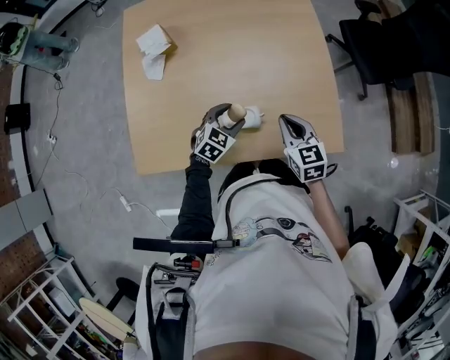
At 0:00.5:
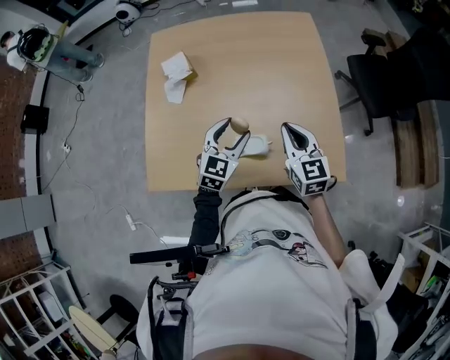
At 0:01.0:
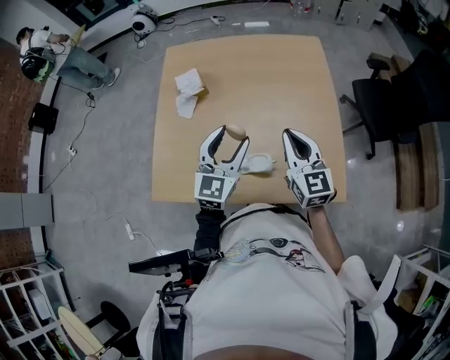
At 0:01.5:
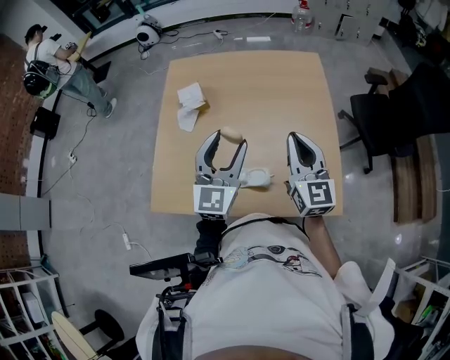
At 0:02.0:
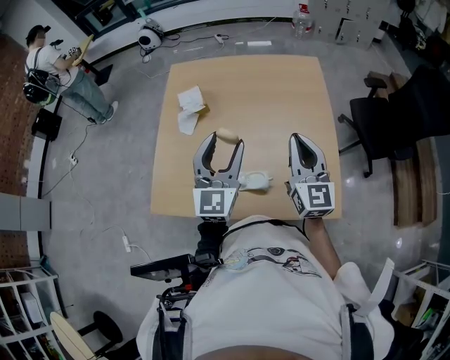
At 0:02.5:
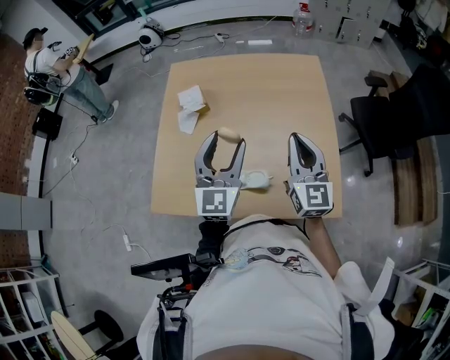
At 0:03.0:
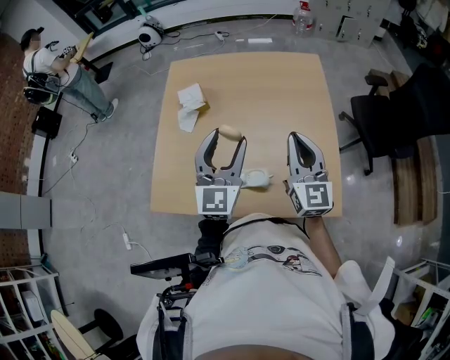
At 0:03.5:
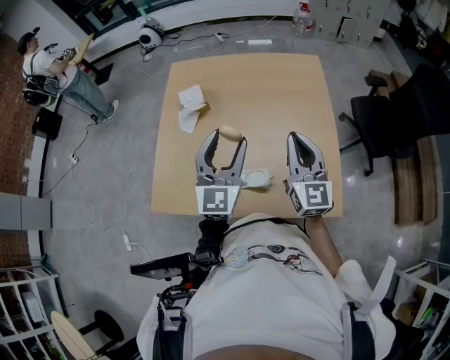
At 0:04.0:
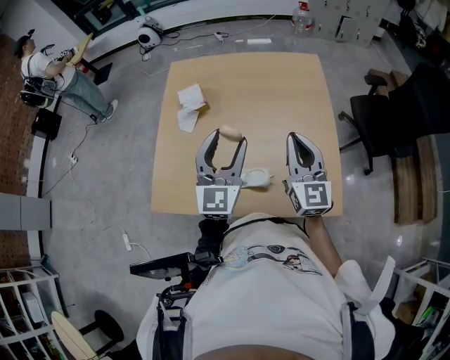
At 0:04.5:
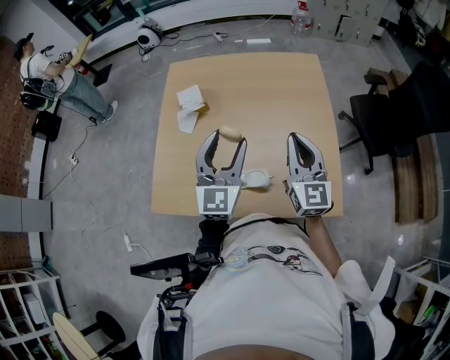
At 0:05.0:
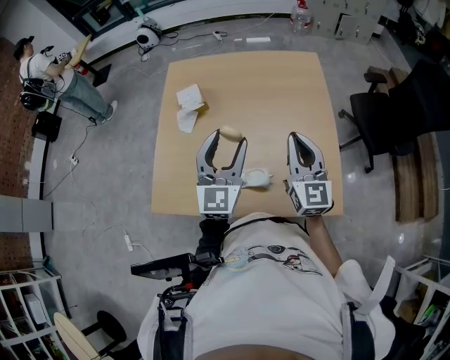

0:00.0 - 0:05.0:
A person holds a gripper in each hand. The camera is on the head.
0:00.0 - 0:02.5: The grippers both shift upward by some 25 cm. The left gripper points its fingers roughly 50 degrees further upward, while the right gripper tilts its fingers approximately 30 degrees upward.
0:02.5 - 0:05.0: There are only small adjustments of the grippers.

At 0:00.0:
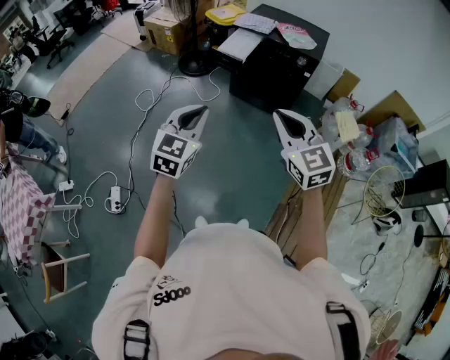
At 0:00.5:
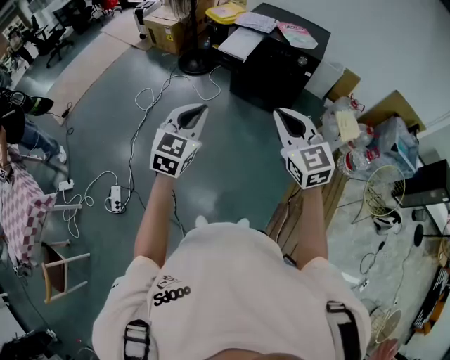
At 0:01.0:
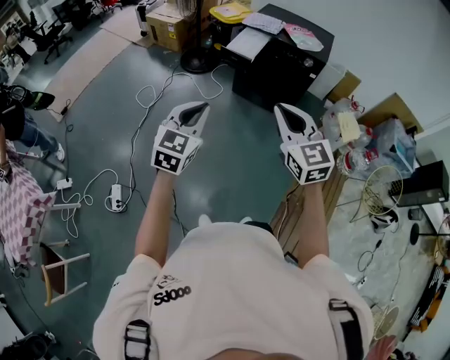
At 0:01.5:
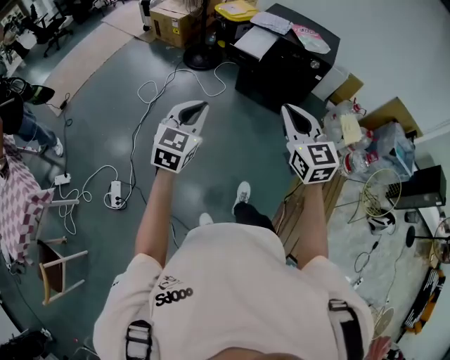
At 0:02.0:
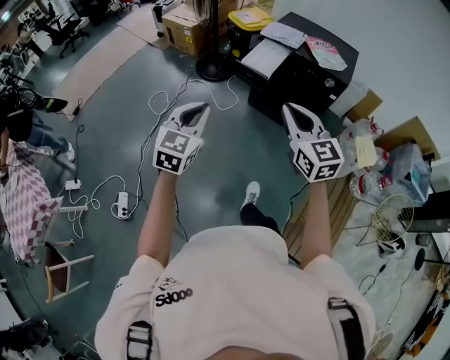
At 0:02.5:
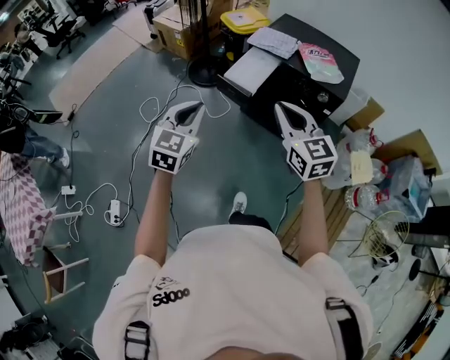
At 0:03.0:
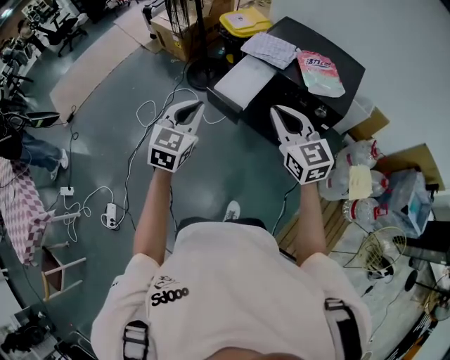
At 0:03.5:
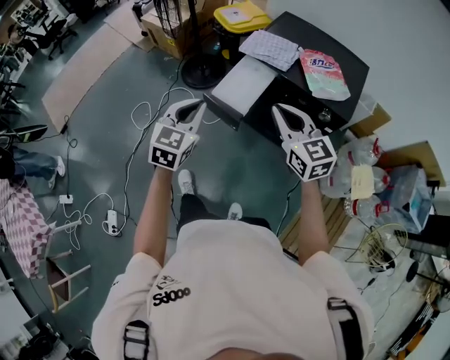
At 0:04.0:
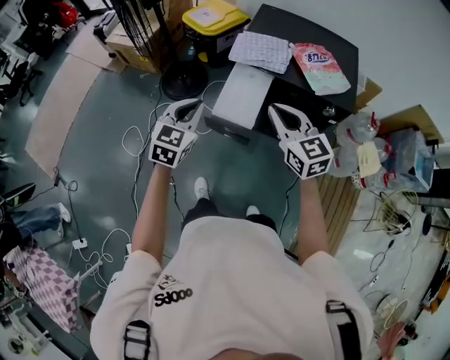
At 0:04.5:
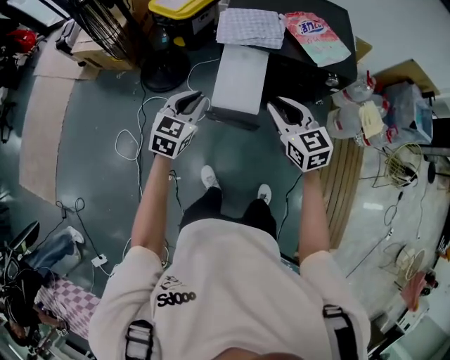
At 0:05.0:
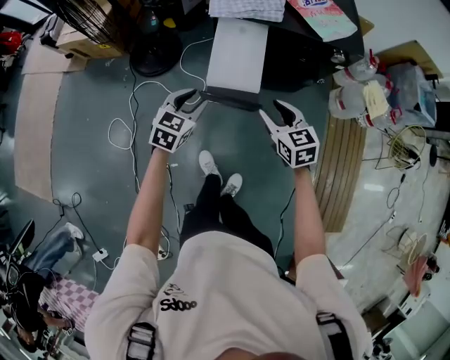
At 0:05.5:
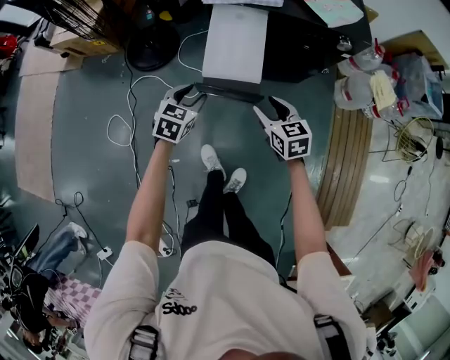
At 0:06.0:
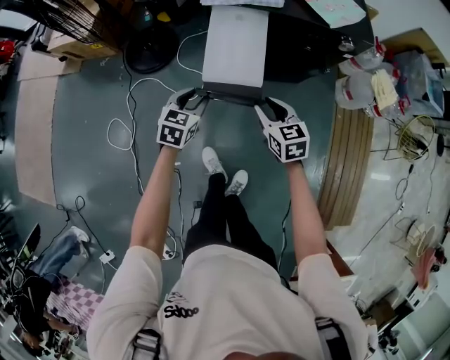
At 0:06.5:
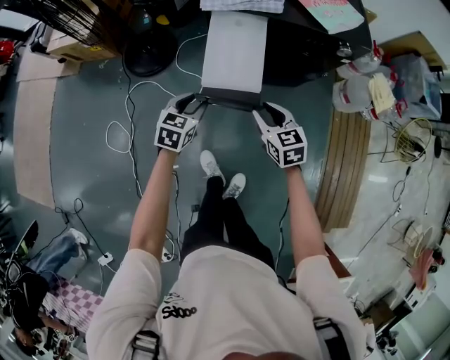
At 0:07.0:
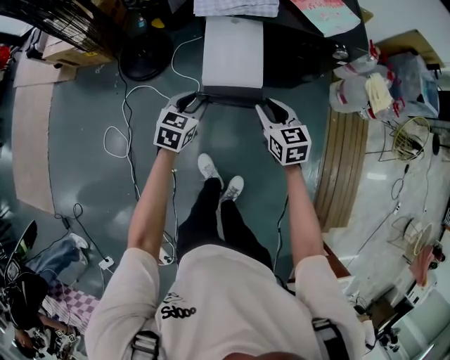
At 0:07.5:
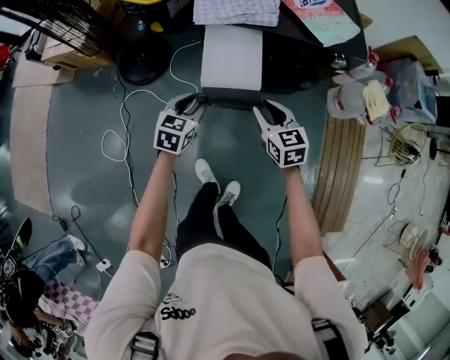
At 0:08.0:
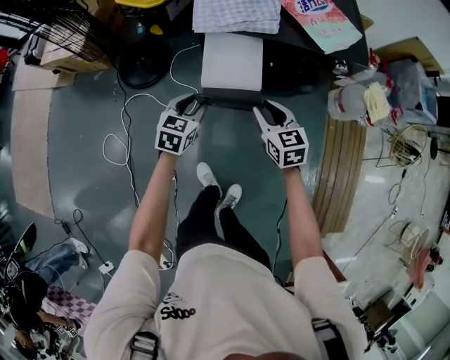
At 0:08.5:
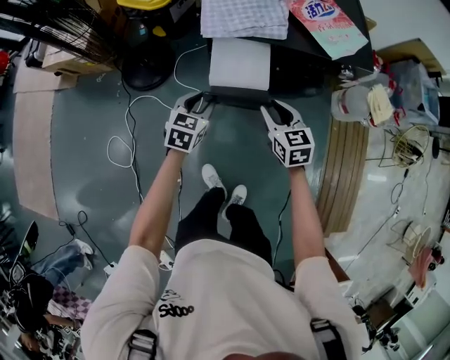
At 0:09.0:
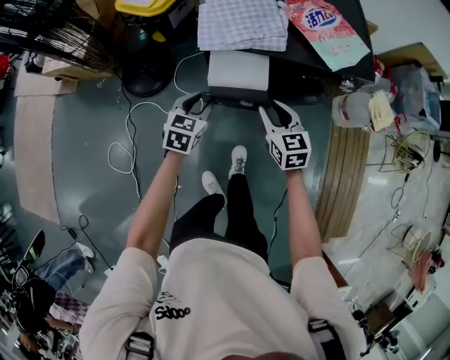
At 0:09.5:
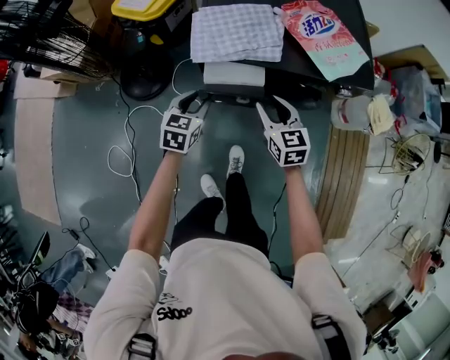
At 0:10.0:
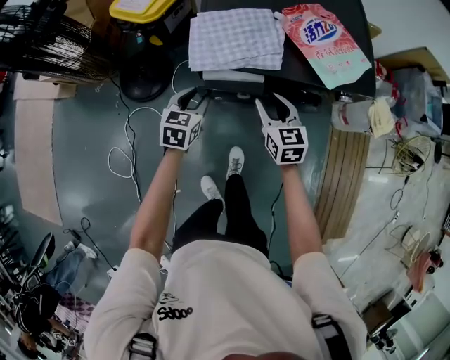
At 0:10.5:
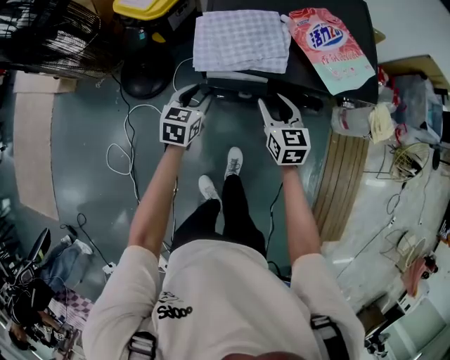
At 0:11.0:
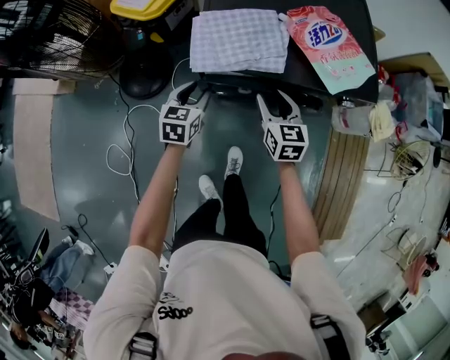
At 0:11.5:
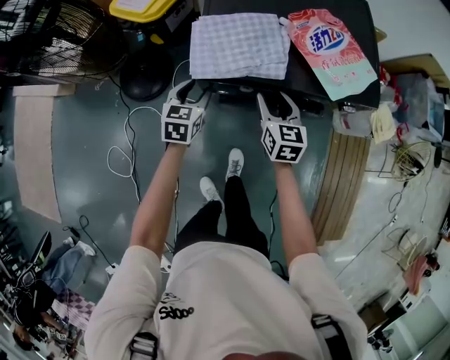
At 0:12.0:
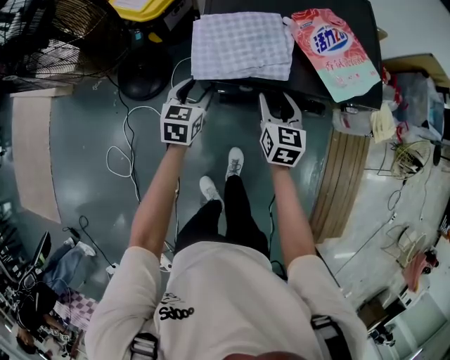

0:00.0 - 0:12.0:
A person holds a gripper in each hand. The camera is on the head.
0:00.0 - 0:02.0: The right gripper travels forward by approximately 20 cm, while the left gripper moves forward and to the left, approximately 15 cm.
0:02.0 - 0:04.0: The pair of grippers is taken forward, about 50 cm.
0:04.0 - 0:06.0: The two grippers go about 30 cm downward. The left gripper turns by approximately 20 degrees, and opens its fingers; the right gripper rotates approximately 30 degrees, and opens.
0:06.0 - 0:08.0: The two grippers go approximately 10 cm forward.
0:08.0 - 0:10.0: The two grippers go about 15 cm forward.
0:10.0 - 0:12.0: The left gripper moves forward, some 5 cm.

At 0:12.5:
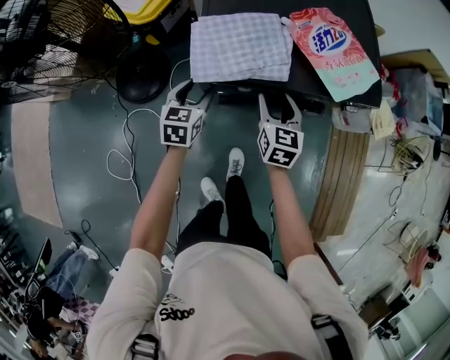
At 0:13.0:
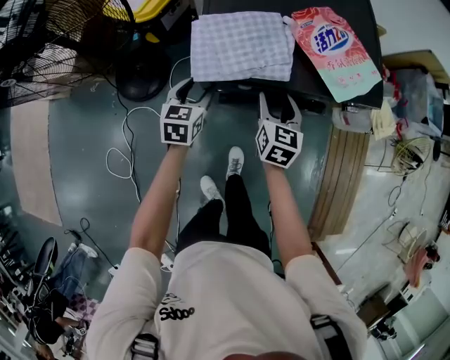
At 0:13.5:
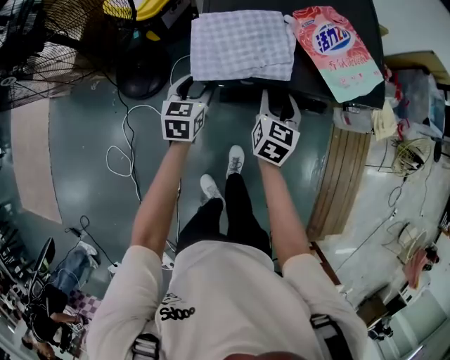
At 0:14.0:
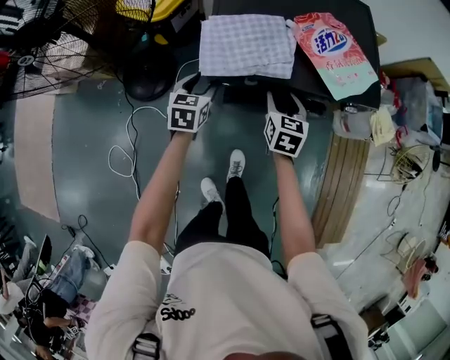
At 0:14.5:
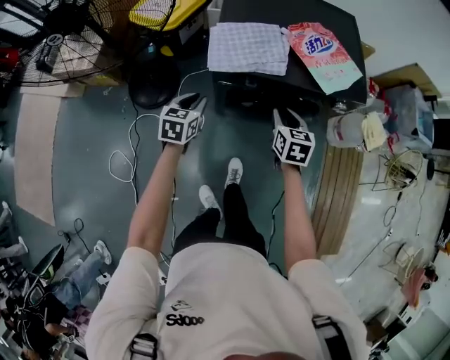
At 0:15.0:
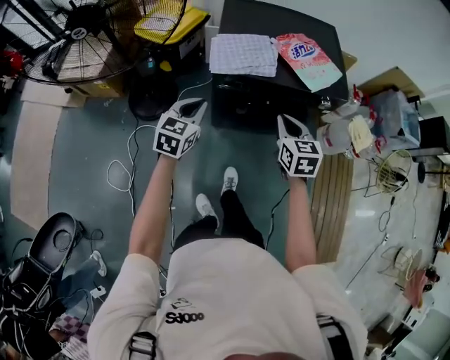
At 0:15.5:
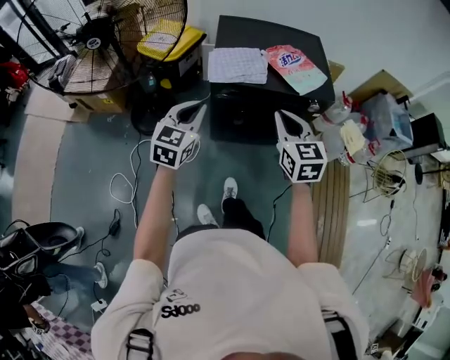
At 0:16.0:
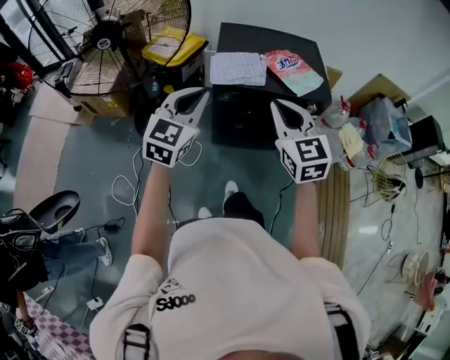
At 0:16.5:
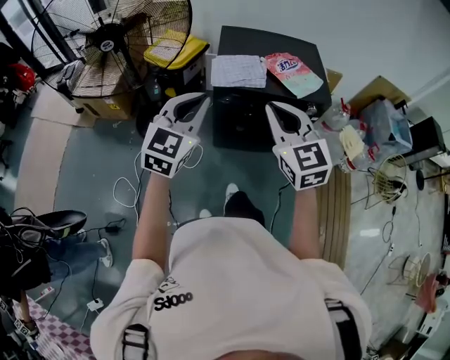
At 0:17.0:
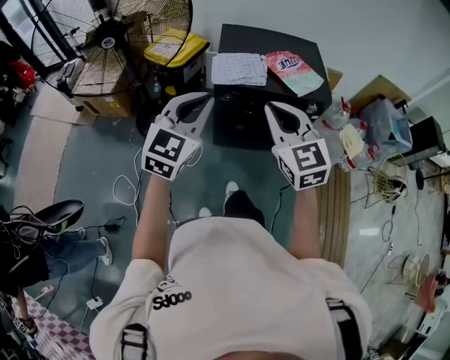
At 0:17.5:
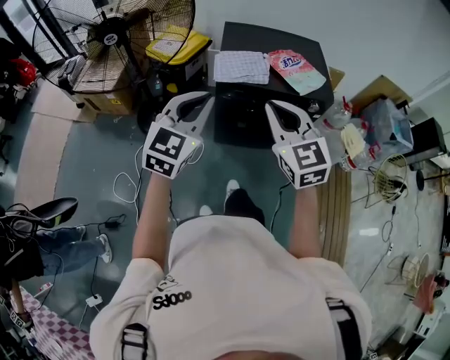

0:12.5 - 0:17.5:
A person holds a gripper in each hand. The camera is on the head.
0:12.5 - 0:15.0: The two grippers go roughly 20 cm backward and upward. The right gripper closes its fingers; the left gripper closes its fingers.
0:15.0 - 0:17.5: Both grippers move upward and backward, roughly 25 cm. The right gripper changes its angle by roughly 30 degrees; the left gripper turns by some 20 degrees.

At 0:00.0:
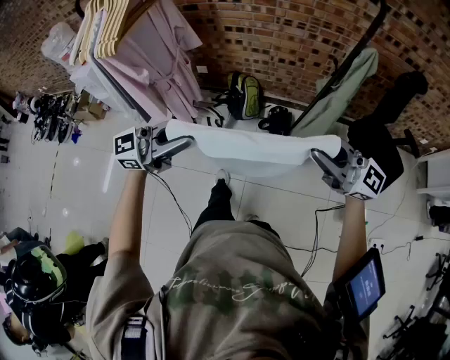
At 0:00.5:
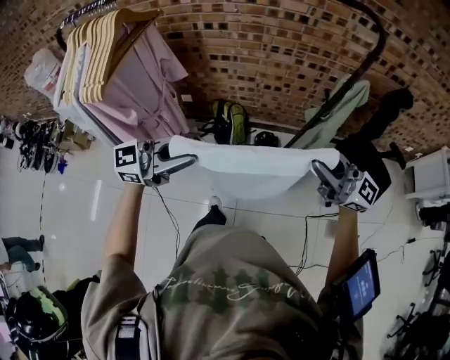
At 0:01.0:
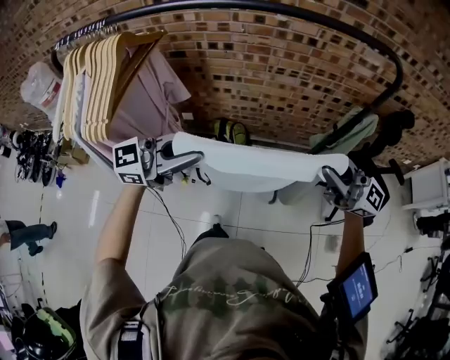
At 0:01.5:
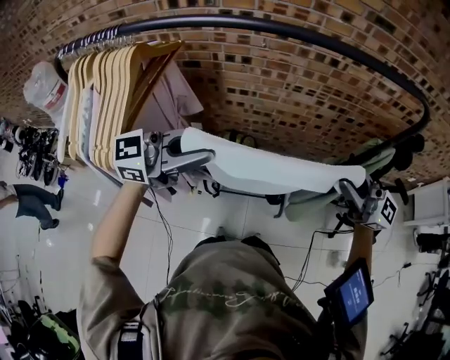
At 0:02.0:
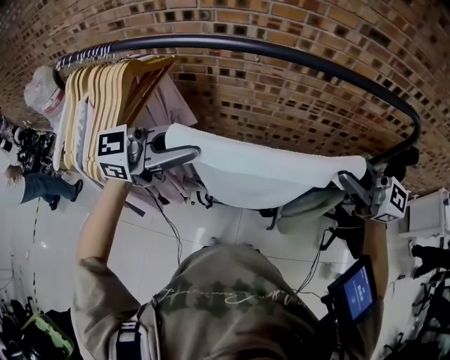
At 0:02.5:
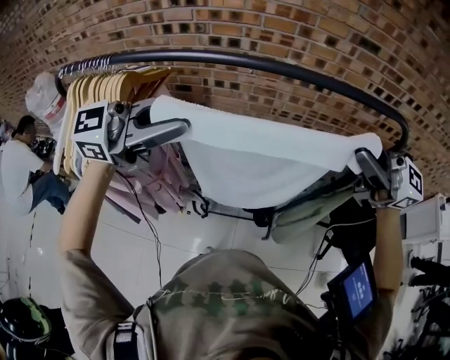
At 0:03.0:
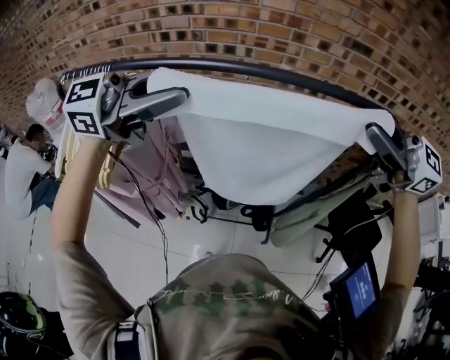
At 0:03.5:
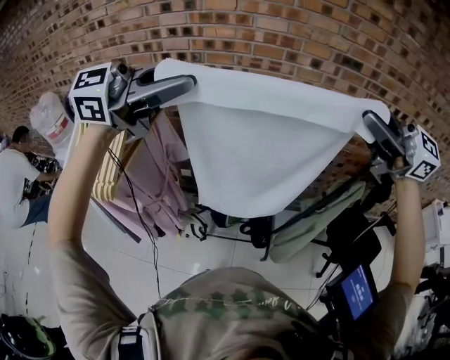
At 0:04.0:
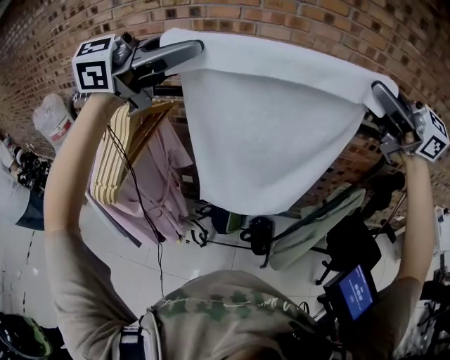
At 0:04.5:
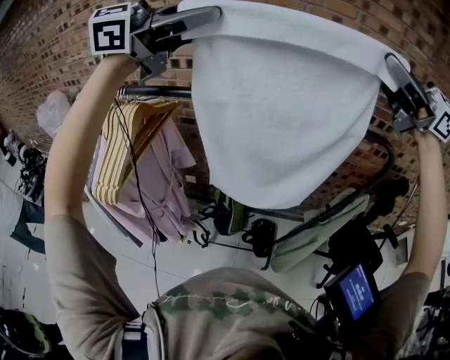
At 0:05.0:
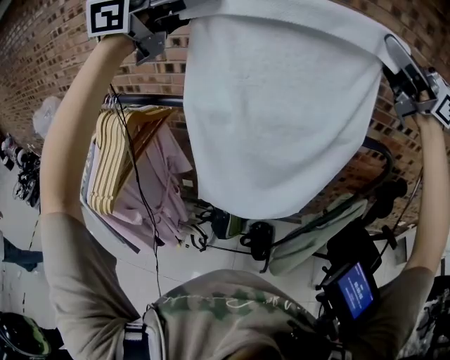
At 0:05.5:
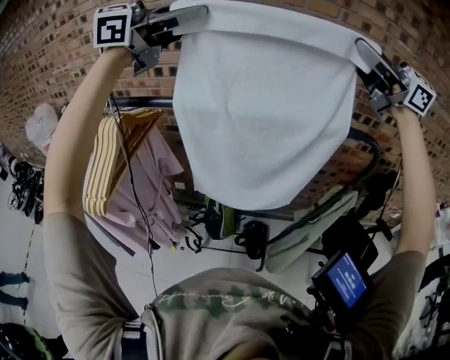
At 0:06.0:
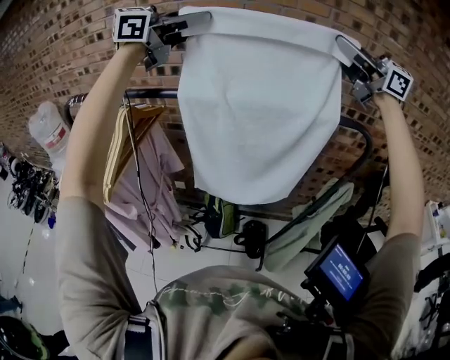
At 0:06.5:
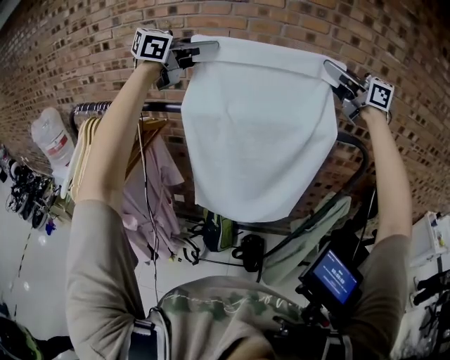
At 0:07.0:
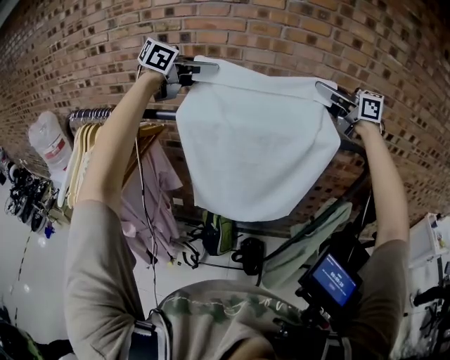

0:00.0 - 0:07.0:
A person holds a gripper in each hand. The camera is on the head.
0:00.0 - 0:02.0: The right gripper moves roughly 30 cm. Meanwhile the left gripper shifts by approximately 35 cm.
0:02.0 - 0:03.5: Both grippers travel together upward, about 20 cm.
0:03.5 - 0:05.0: Both grippers travel together upward, about 15 cm.
0:05.0 - 0:07.0: The left gripper moves downward, roughly 15 cm, and changes its angle by approximately 20 degrees. Meanwhile the right gripper changes place by about 15 cm, and swivels approximately 20 degrees.
